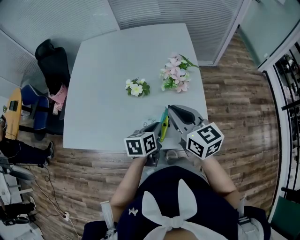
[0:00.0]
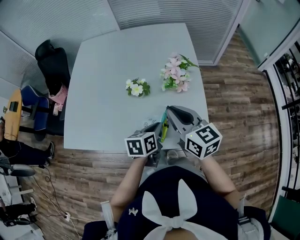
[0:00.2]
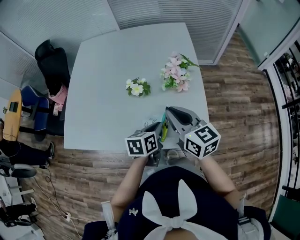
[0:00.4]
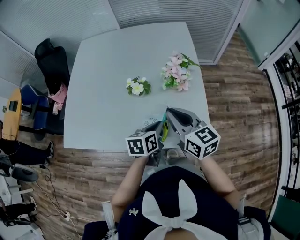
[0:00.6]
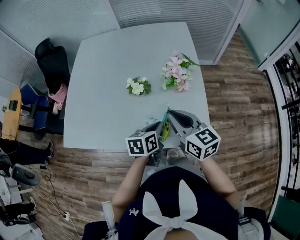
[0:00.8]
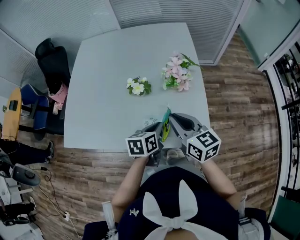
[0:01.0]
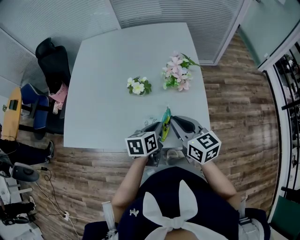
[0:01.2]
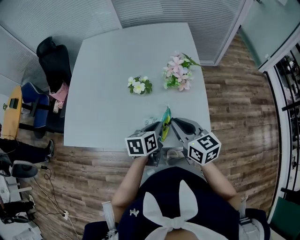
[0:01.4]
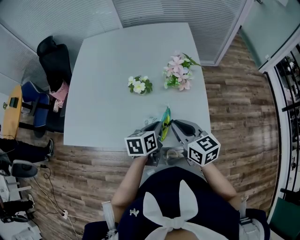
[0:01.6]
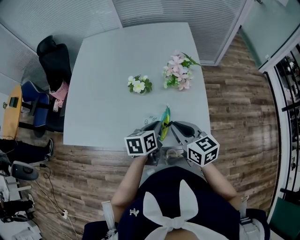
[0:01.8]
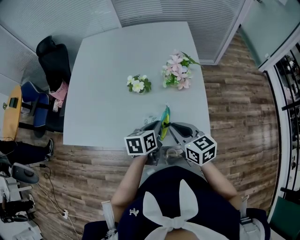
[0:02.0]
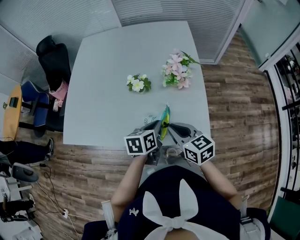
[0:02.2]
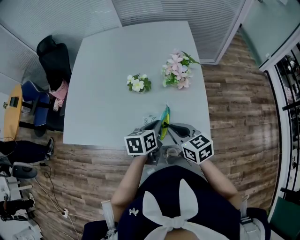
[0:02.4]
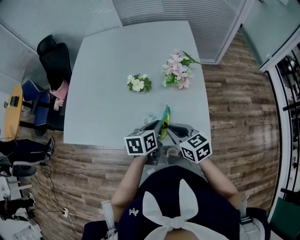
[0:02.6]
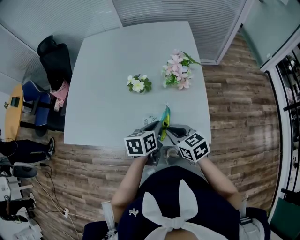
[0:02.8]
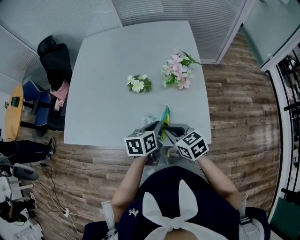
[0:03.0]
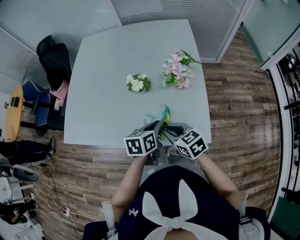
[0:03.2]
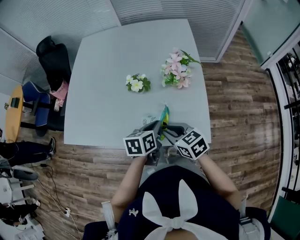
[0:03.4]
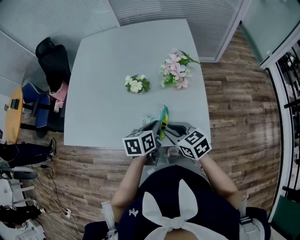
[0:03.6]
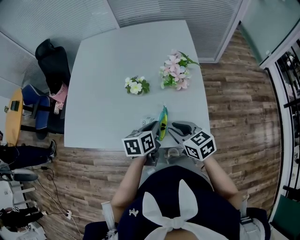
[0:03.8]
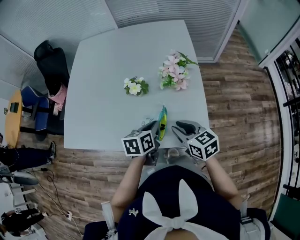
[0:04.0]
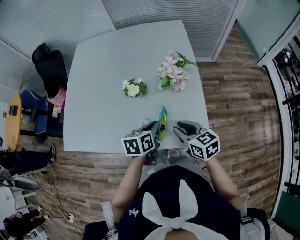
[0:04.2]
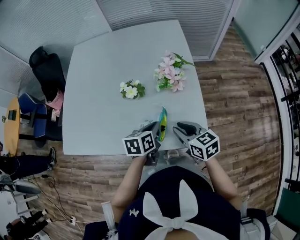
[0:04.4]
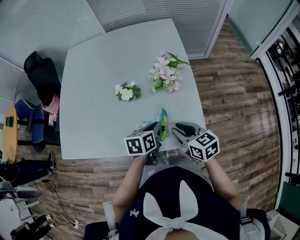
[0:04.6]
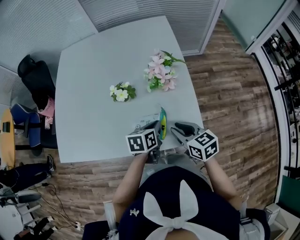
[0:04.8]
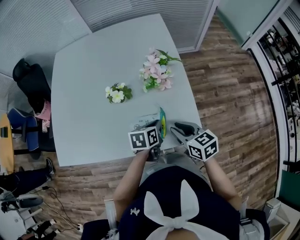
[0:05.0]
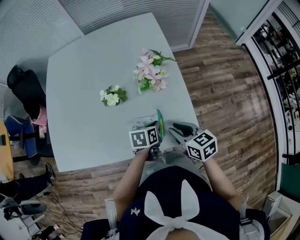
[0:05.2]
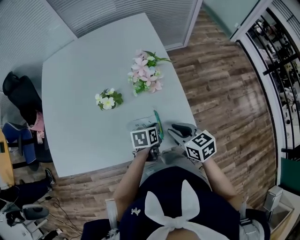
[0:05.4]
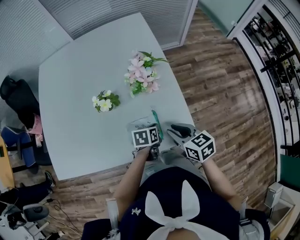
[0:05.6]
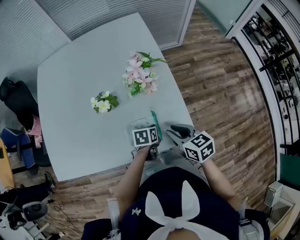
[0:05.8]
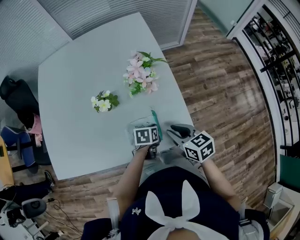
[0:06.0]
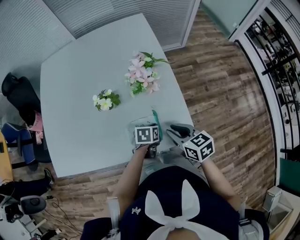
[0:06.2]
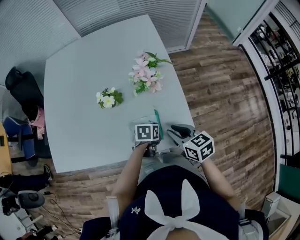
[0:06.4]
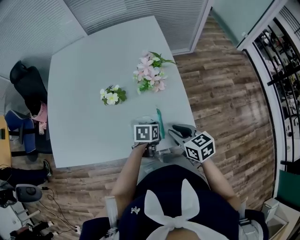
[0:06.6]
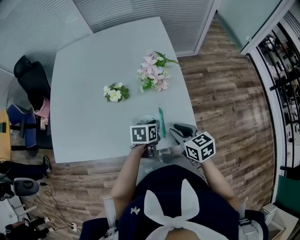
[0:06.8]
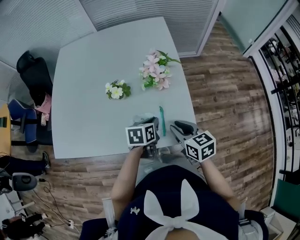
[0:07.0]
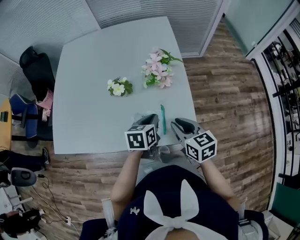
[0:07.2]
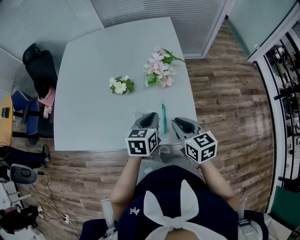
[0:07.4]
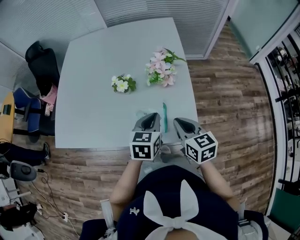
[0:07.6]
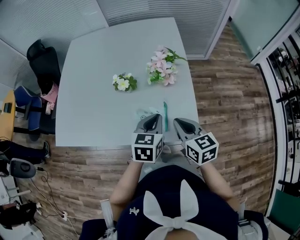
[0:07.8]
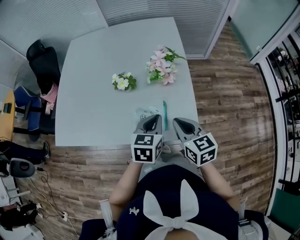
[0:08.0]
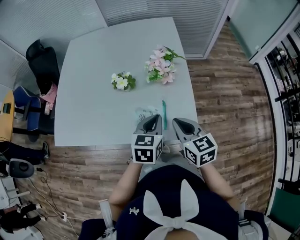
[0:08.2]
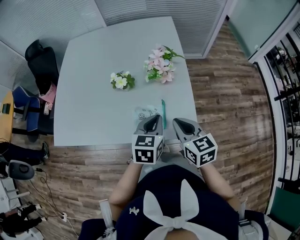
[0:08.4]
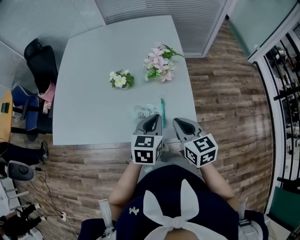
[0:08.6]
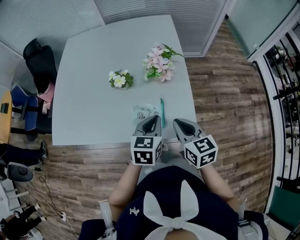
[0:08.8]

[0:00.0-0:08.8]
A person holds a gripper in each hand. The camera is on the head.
0:00.0 to 0:01.4: The right gripper moves downward, some 5 cm.
0:01.4 to 0:03.0: The right gripper is displaced downward by approximately 10 cm, and changes its angle by about 20 degrees.
0:03.0 to 0:04.4: The right gripper goes approximately 5 cm to the right.
0:04.4 to 0:05.8: The left gripper heads downward and to the right, covering some 15 cm, and turns by roughly 20 degrees, while the right gripper ends up about 5 cm from where it was.
0:05.8 to 0:07.4: The left gripper is displaced upward by roughly 15 cm, and rotates roughly 30 degrees. The right gripper shifts approximately 5 cm upward.
0:07.4 to 0:08.8: The left gripper moves roughly 5 cm.

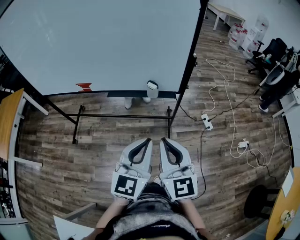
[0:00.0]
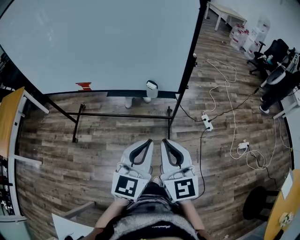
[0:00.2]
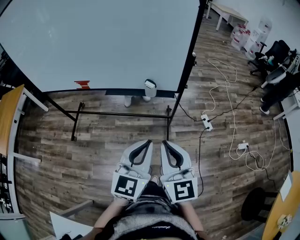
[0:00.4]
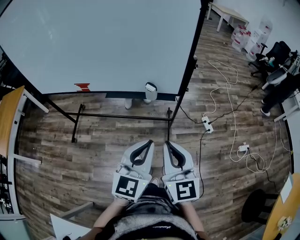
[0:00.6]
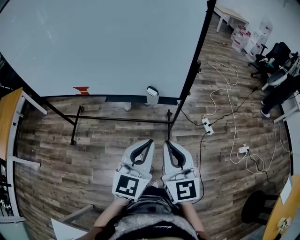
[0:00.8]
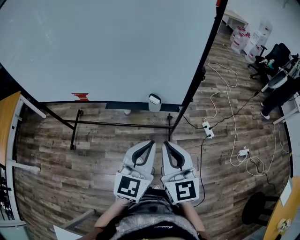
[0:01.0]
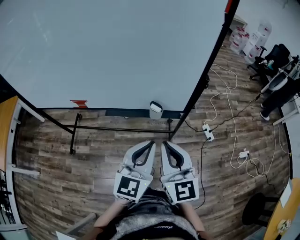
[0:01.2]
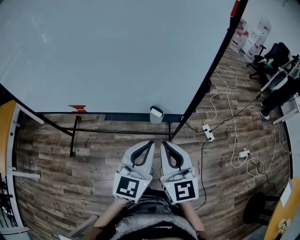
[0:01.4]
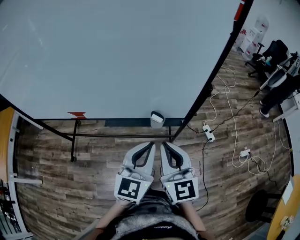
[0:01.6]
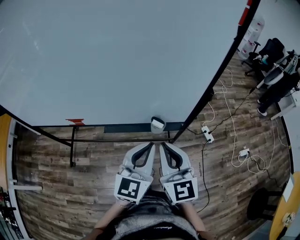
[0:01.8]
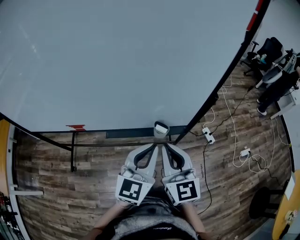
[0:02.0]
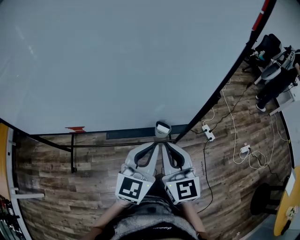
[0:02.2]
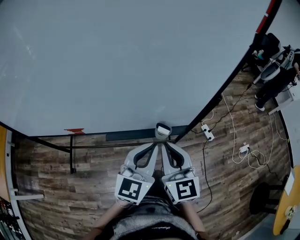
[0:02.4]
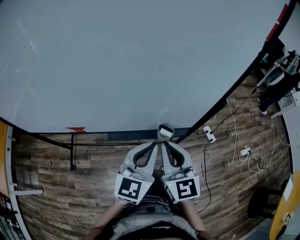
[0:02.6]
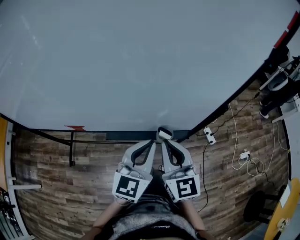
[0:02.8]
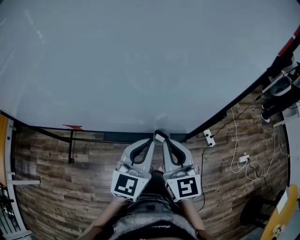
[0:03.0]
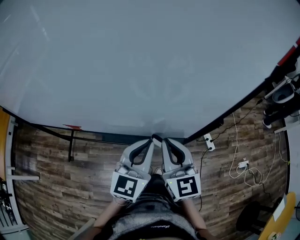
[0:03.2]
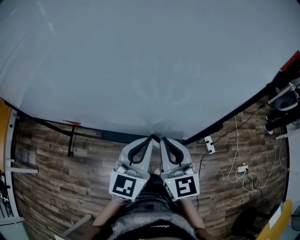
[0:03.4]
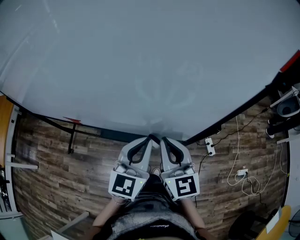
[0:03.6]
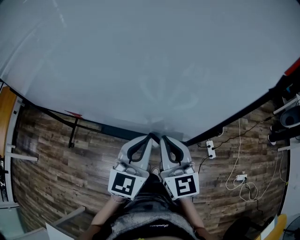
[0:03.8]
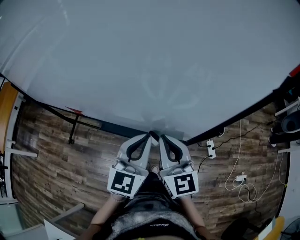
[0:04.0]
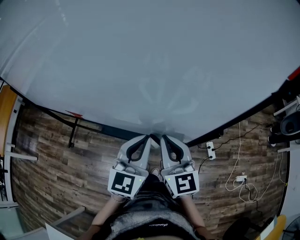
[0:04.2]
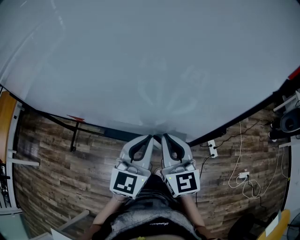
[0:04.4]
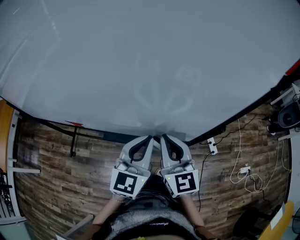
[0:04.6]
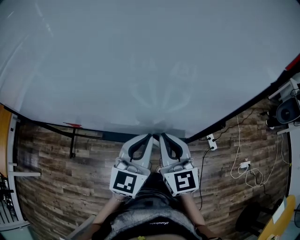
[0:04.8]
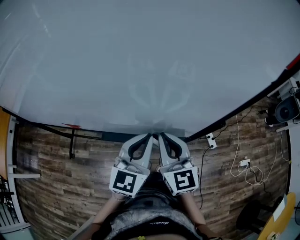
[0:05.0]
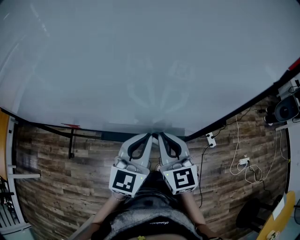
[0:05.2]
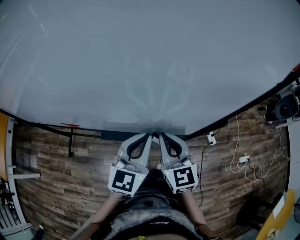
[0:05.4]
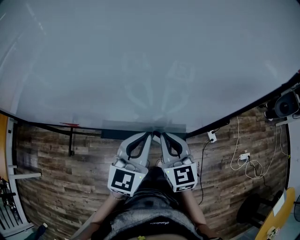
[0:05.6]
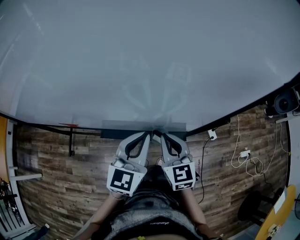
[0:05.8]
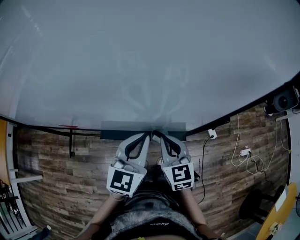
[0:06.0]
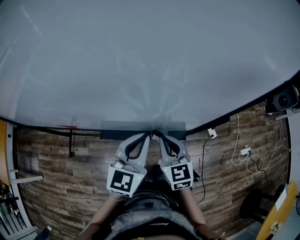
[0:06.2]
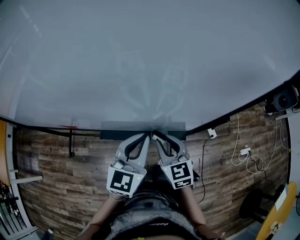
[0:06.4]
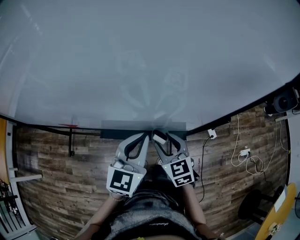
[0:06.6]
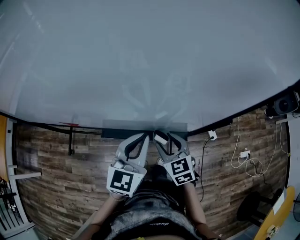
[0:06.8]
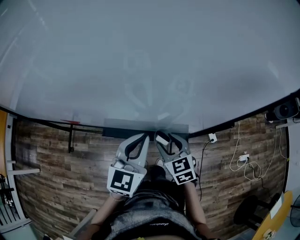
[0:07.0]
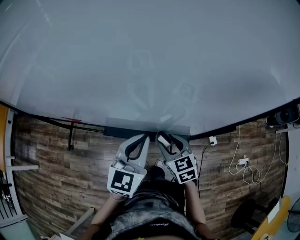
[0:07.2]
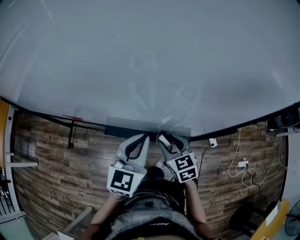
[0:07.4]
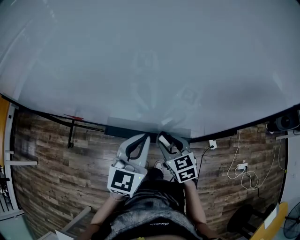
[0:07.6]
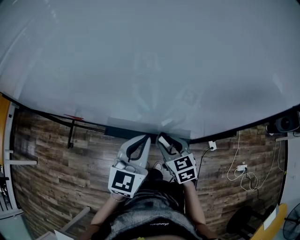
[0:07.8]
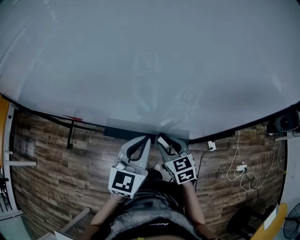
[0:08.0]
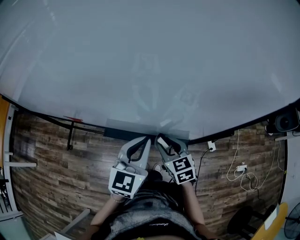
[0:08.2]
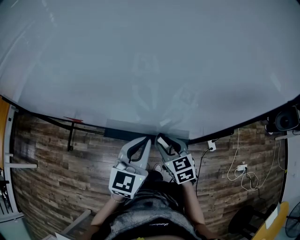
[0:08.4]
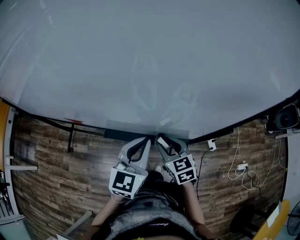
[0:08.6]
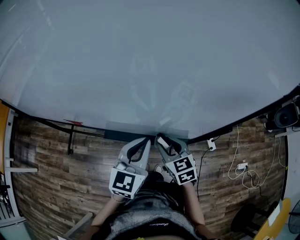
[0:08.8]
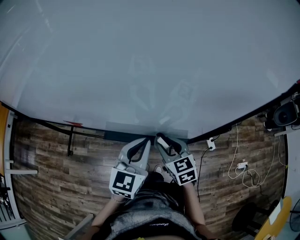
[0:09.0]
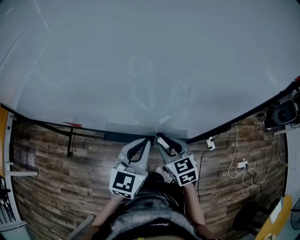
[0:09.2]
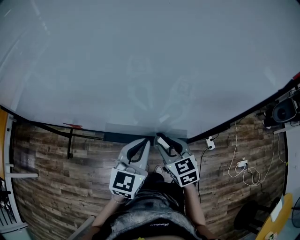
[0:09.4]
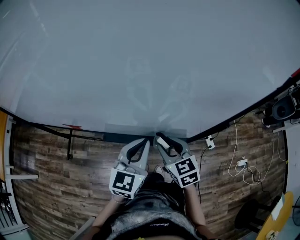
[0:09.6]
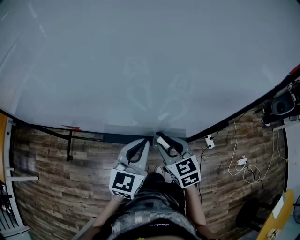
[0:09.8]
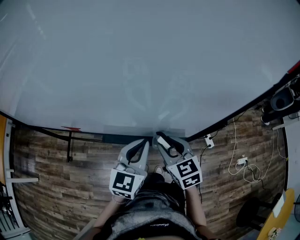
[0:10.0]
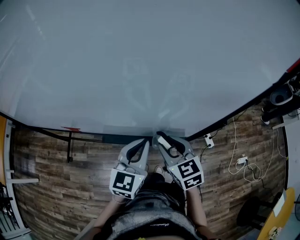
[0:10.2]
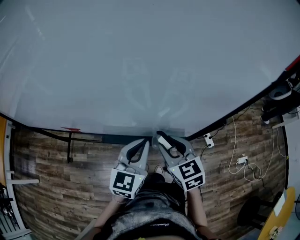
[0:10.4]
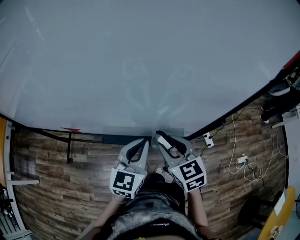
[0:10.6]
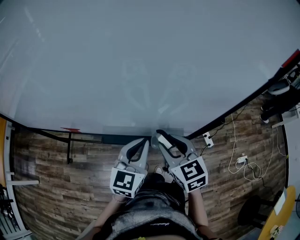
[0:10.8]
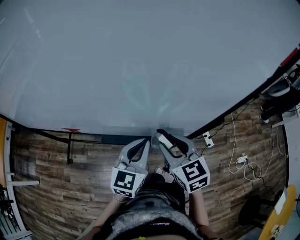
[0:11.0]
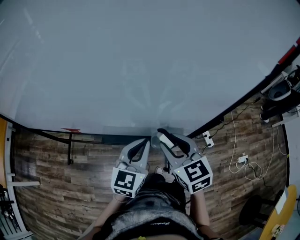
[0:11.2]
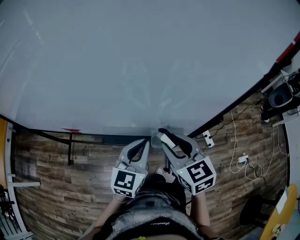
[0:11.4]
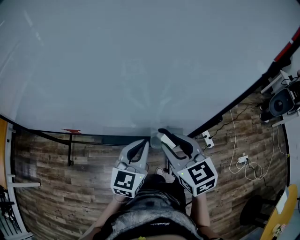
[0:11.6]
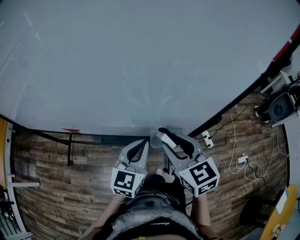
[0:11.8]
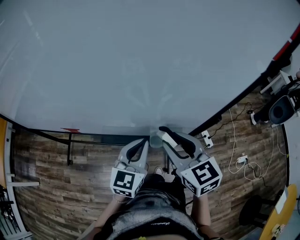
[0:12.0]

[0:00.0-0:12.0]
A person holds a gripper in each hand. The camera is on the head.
0:00.0 to 0:01.6: The grippers both shift forward by about 20 cm.
0:01.6 to 0:03.0: Both grippers move forward, roughly 15 cm.
0:03.0 to 0:04.4: There are only small adjustments of the grippers.
0:04.4 to 0:06.0: The right gripper travels downward by approximately 10 cm.
0:06.0 to 0:07.6: The right gripper travels downward by some 5 cm, changes its angle by approximately 20 degrees, and opens up.
0:07.6 to 0:09.0: The grippers stay close to where they were, moving slightly.
0:09.0 to 0:10.4: The right gripper travels upward by some 5 cm.
0:10.4 to 0:12.0: The right gripper is displaced upward by approximately 10 cm.

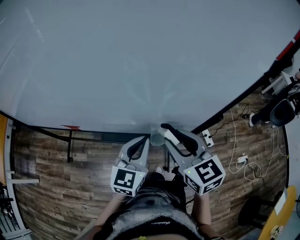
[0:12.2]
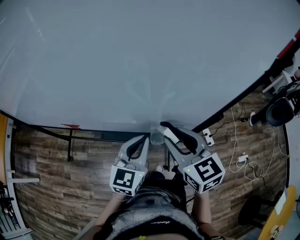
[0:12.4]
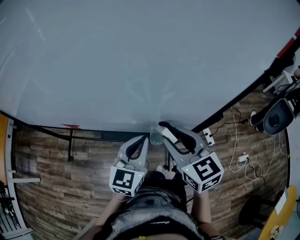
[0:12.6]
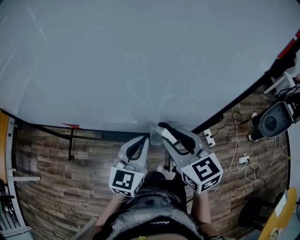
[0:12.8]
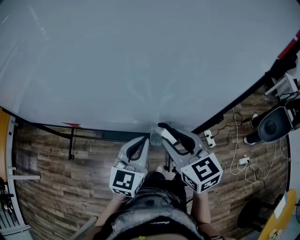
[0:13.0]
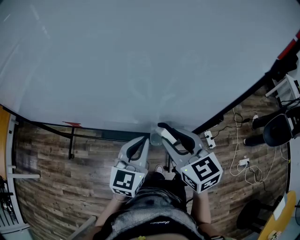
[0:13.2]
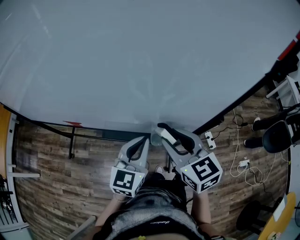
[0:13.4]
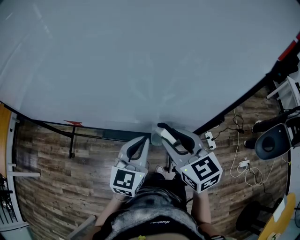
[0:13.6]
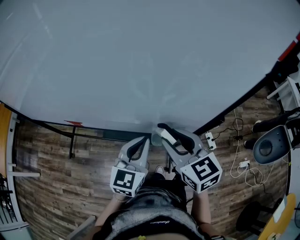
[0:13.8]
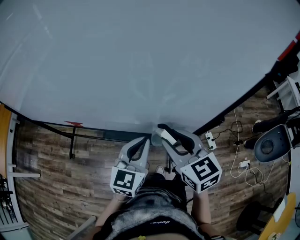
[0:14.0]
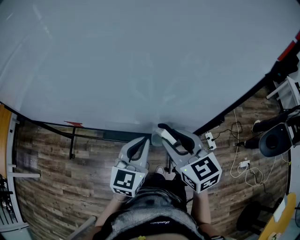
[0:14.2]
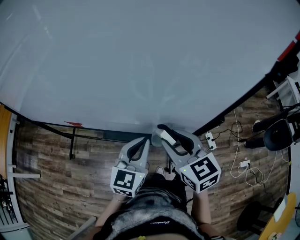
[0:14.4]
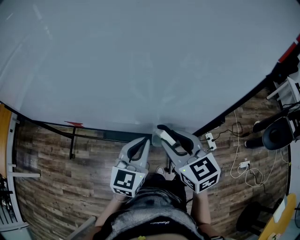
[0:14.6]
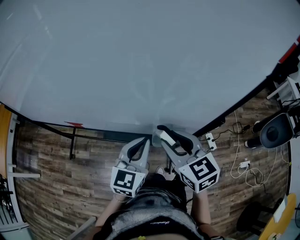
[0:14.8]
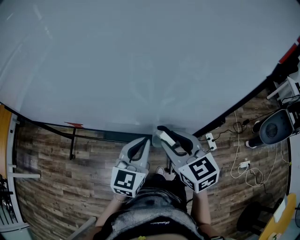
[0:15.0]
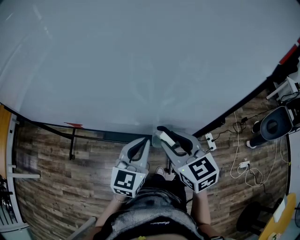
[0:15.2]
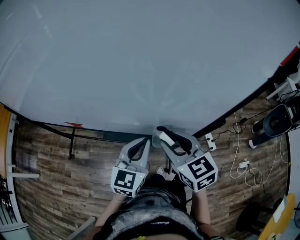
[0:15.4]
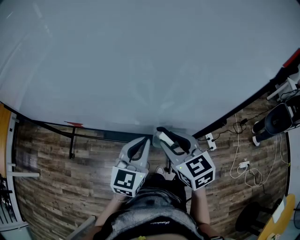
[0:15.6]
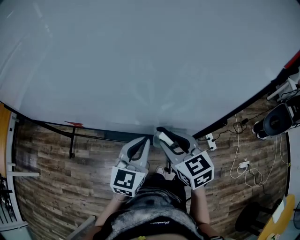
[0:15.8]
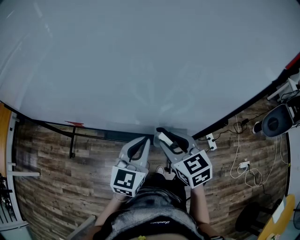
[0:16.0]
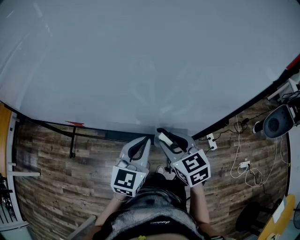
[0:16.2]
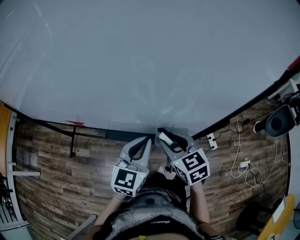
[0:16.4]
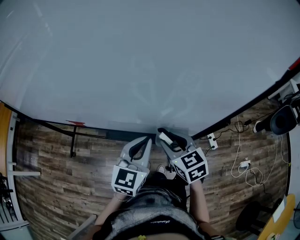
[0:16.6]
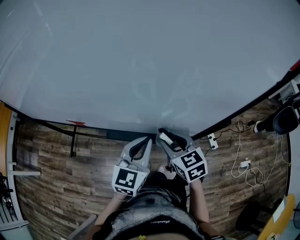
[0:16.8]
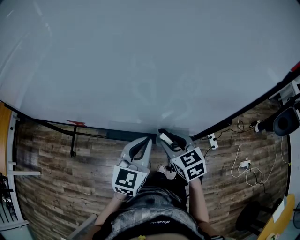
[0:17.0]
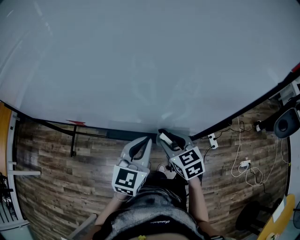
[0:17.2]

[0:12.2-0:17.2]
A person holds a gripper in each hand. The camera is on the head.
0:12.2 to 0:15.6: The grippers move only a little.
0:15.6 to 0:17.2: The right gripper heads downward, covering approximately 10 cm.
